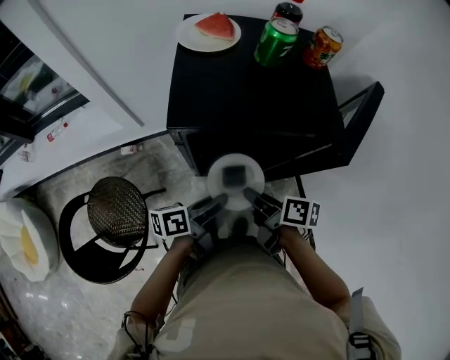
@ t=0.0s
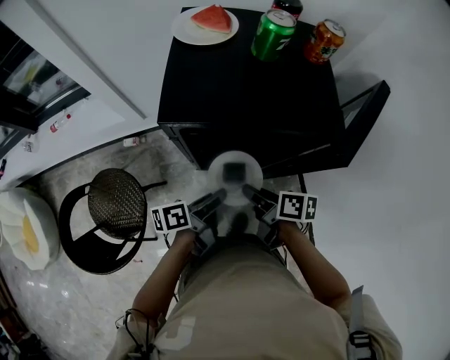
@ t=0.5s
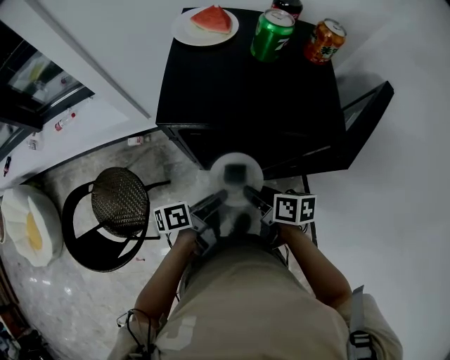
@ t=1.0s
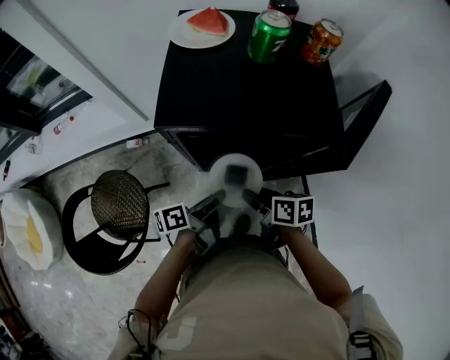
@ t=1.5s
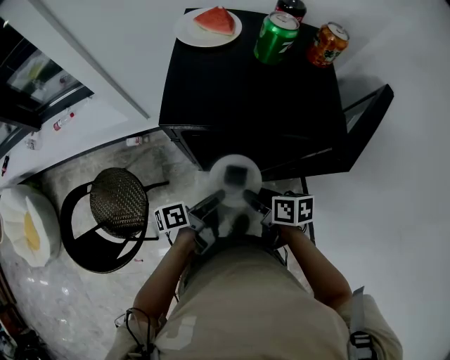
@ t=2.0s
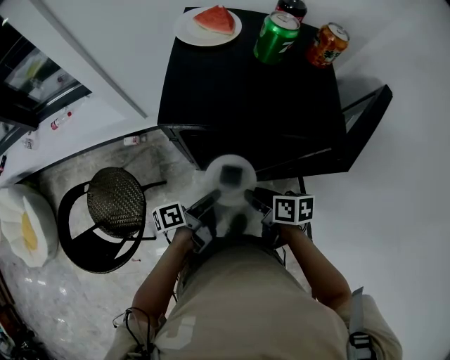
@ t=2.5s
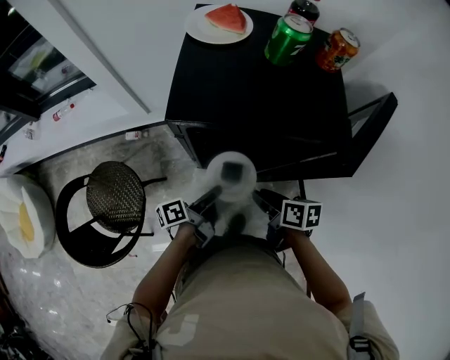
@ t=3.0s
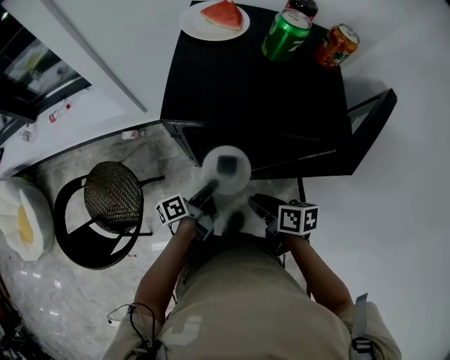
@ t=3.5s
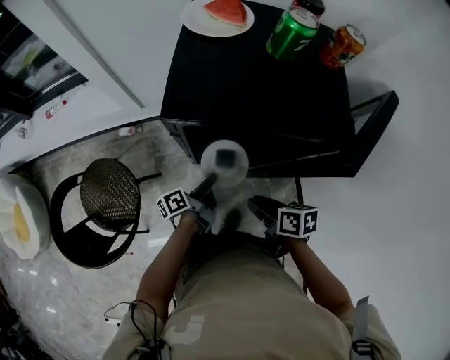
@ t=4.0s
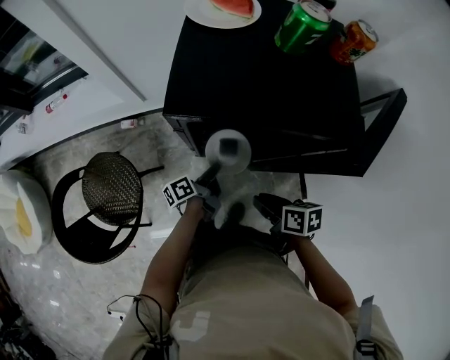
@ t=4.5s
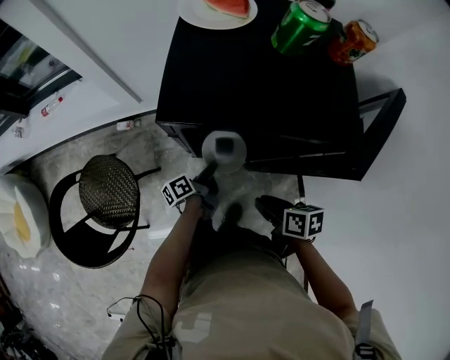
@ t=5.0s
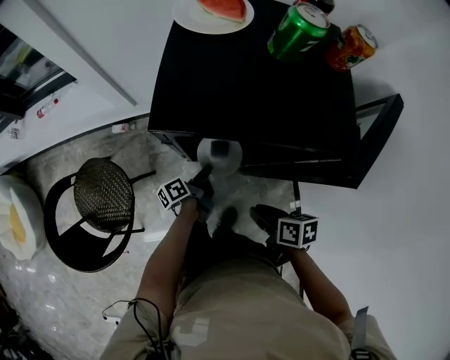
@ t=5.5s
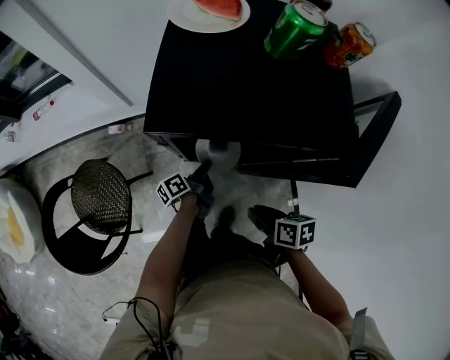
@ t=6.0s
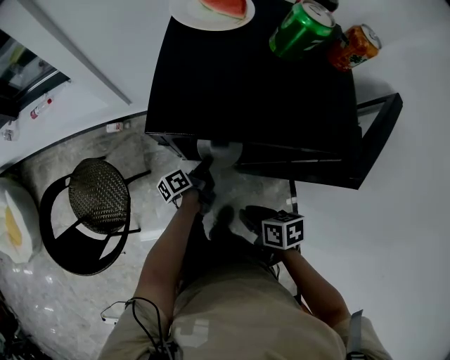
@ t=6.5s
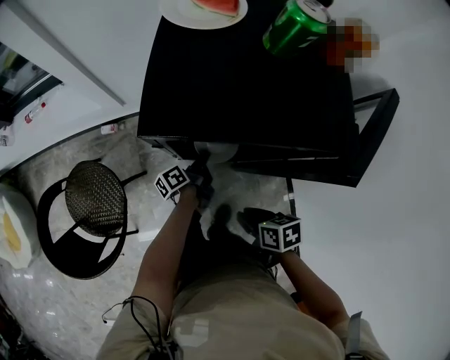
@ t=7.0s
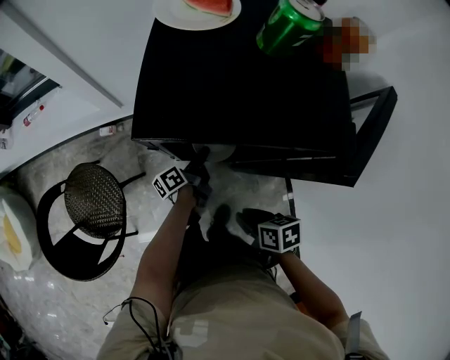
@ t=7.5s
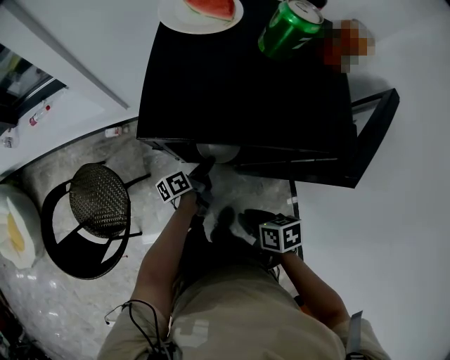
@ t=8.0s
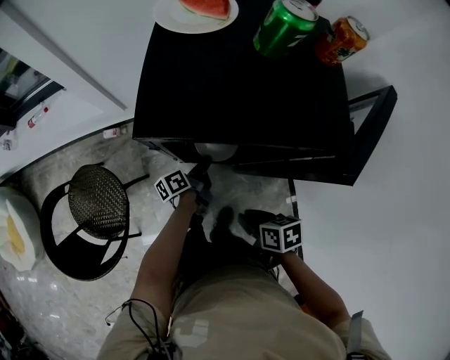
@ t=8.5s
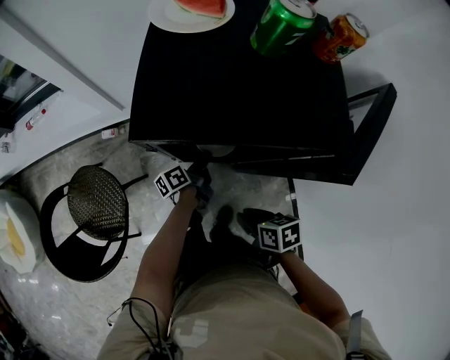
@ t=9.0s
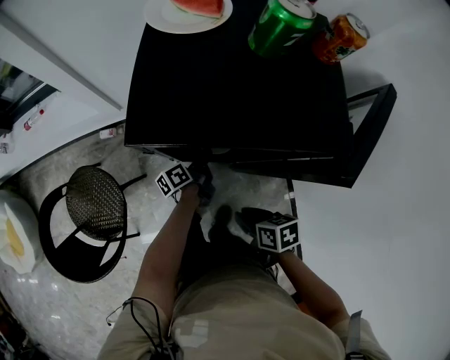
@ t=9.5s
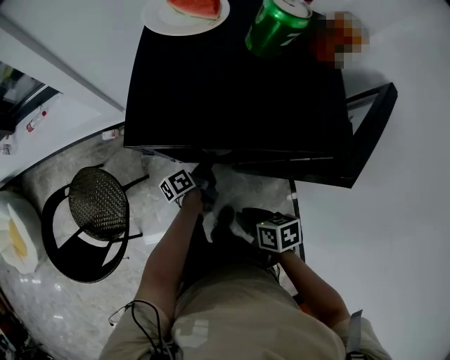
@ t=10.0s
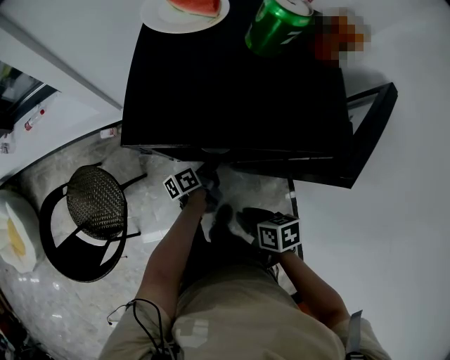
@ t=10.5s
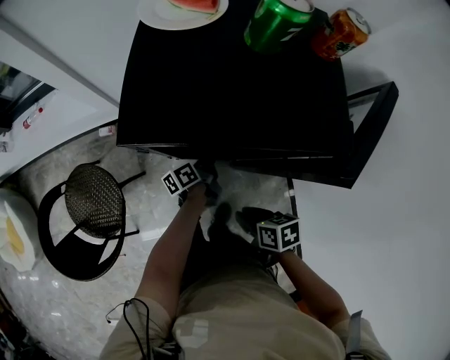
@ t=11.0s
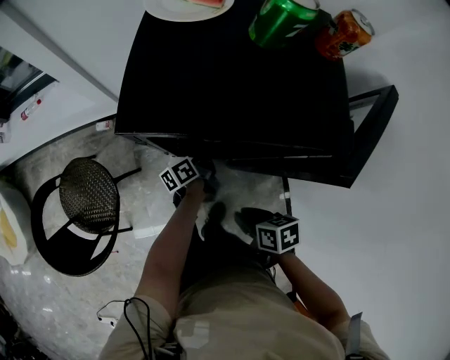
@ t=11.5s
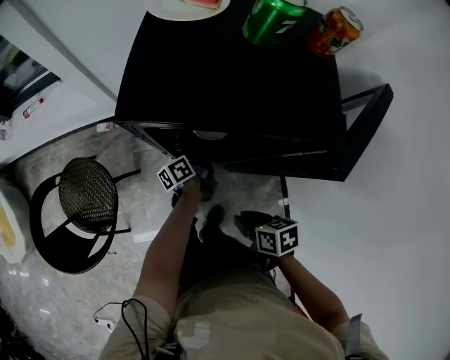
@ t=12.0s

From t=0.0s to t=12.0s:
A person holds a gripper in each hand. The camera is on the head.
From t=0.0s to t=2.0s: The right gripper heads downward, covering approximately 5 cm, and swivels about 20 degrees.
From t=2.0s to t=4.0s: The left gripper moves downward, about 10 cm.
From t=4.0s to t=6.0s: The left gripper heads downward and forward, covering about 10 cm.
From t=6.0s to t=8.0s: The left gripper opens.
From t=8.0s to t=12.0s: There are only small adjustments of the grippers.

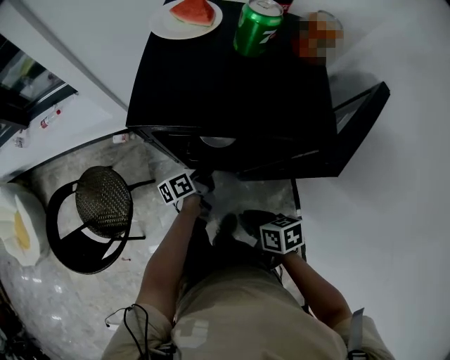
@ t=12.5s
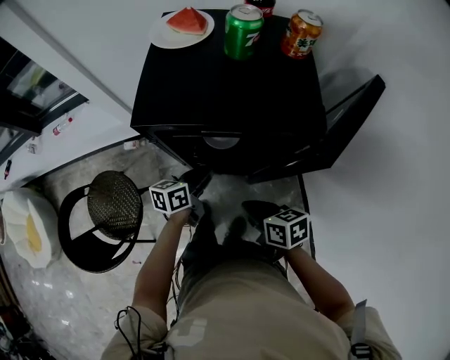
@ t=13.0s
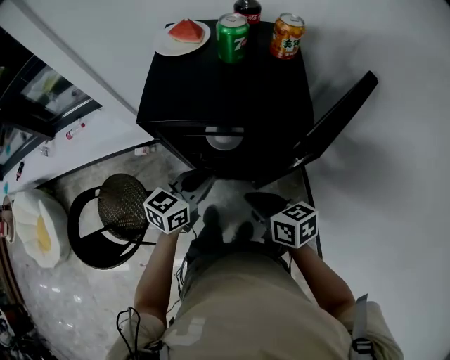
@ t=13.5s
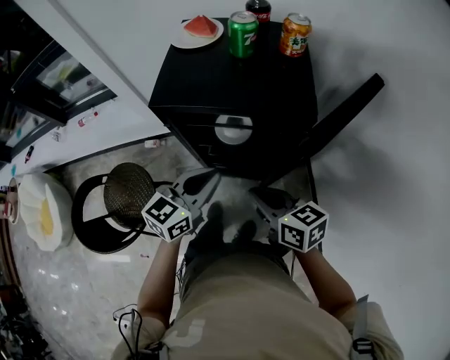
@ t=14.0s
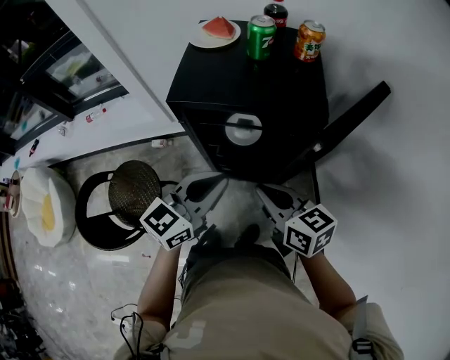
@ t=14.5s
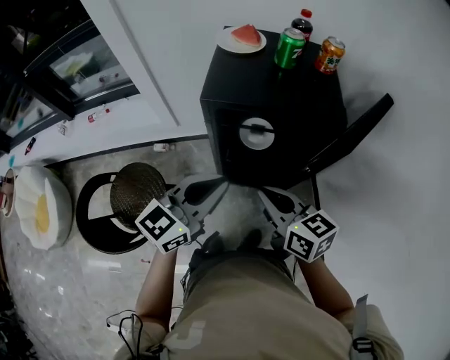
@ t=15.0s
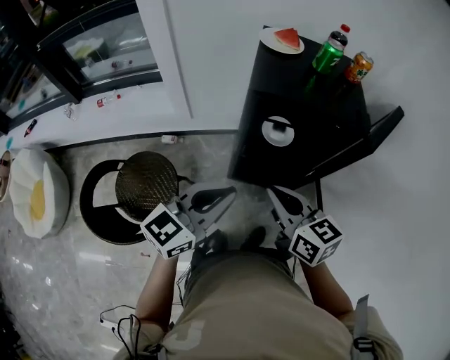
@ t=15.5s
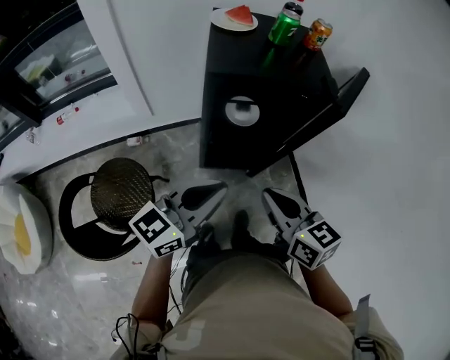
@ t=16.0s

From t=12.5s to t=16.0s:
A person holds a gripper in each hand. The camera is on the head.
From t=12.5s to t=14.5s: The right gripper shifts some 20 cm upward, and swivels some 40 degrees. The left gripper heads upward and backward, covering about 30 cm, and rotates around the line of its fingers by some 70 degrees, clockwise from behind.
From t=14.5s to t=16.0s: The left gripper heads to the left and backward, covering approximately 15 cm, while the right gripper moves backward and to the left, some 15 cm.

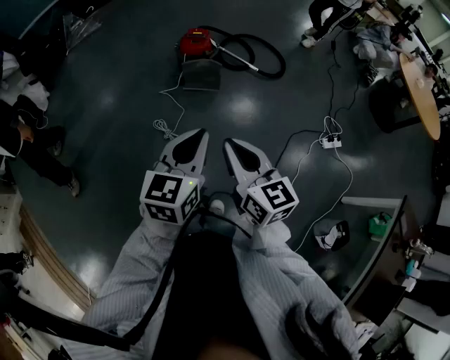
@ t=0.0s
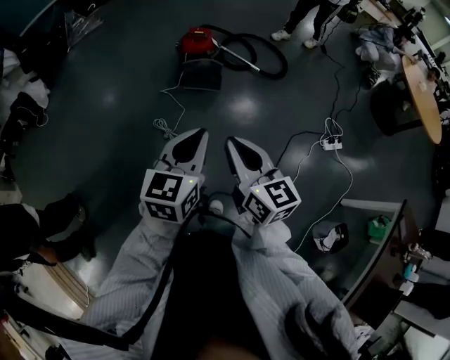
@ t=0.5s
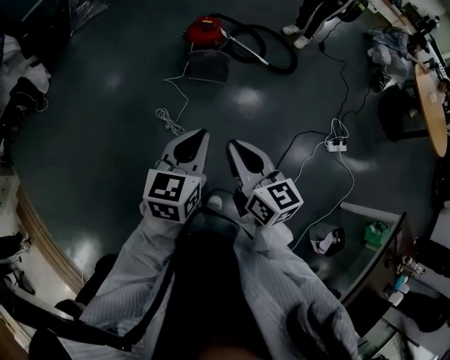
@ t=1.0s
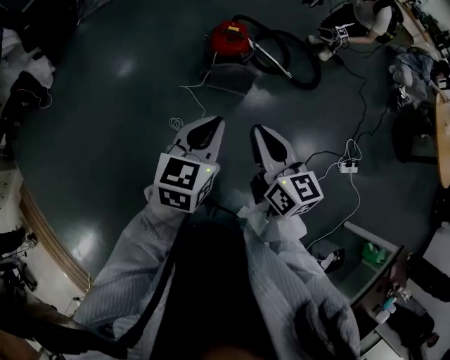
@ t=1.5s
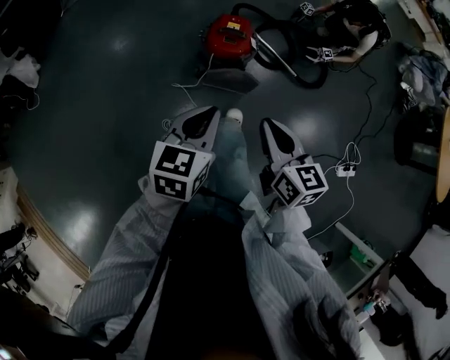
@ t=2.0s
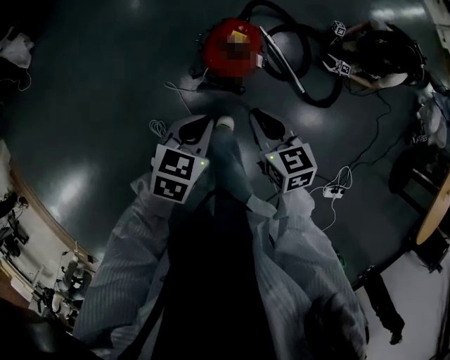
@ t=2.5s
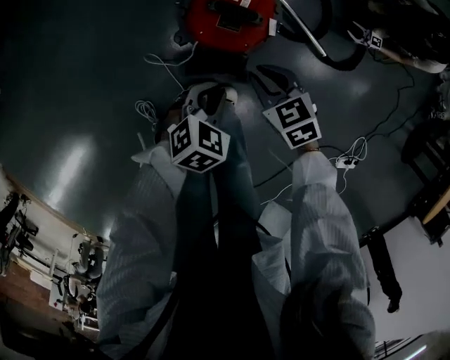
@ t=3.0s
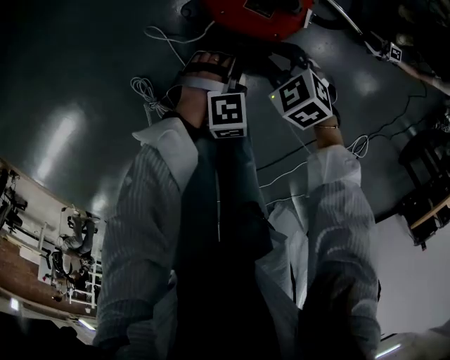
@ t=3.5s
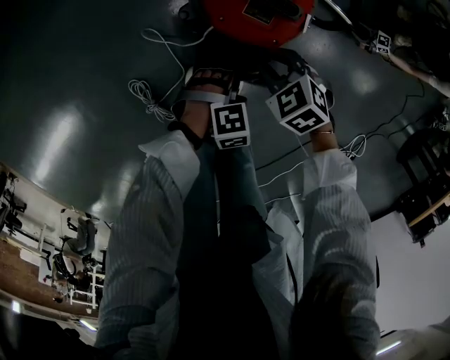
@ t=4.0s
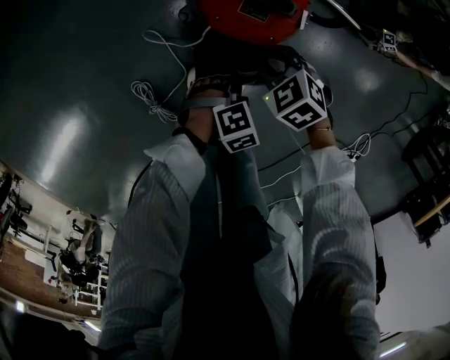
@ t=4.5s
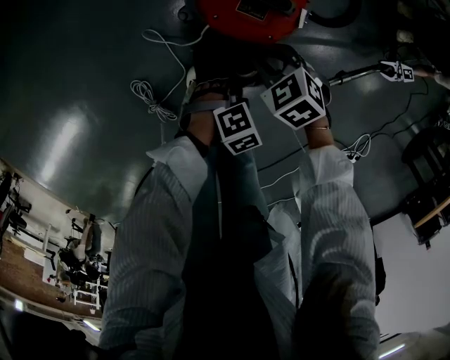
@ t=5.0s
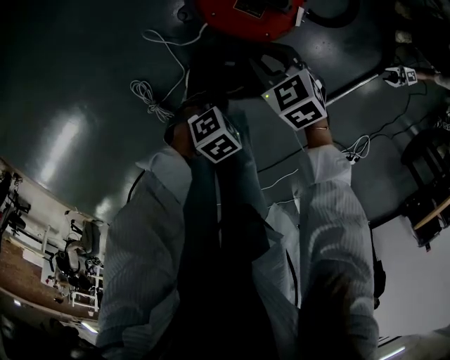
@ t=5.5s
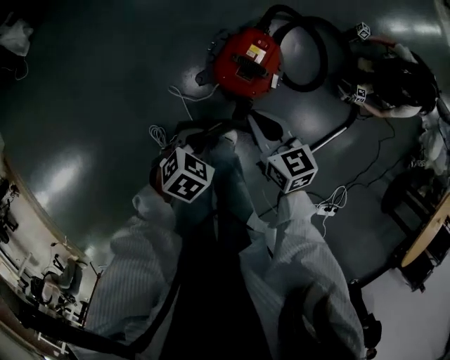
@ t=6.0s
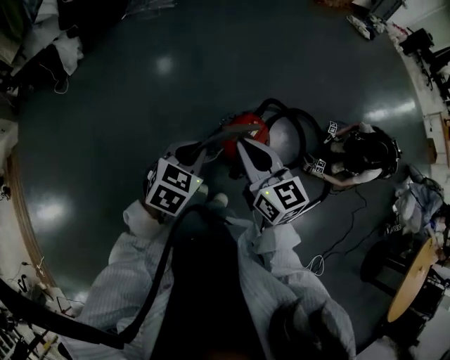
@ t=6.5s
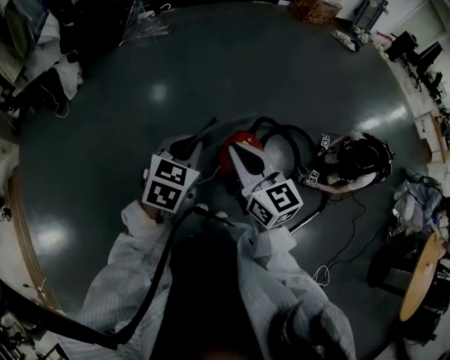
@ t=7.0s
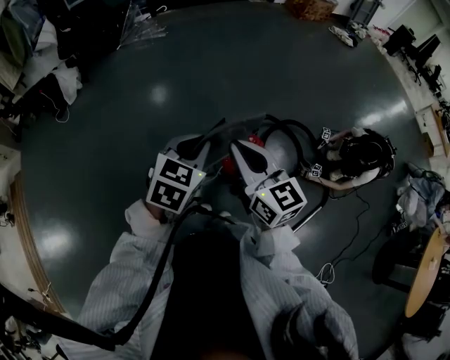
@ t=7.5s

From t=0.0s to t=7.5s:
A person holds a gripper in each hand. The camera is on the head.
From t=0.0s to t=2.0s: The pair of grippers is taken forward, roughly 50 cm.
From t=2.0s to t=4.0s: Both grippers move downward, about 50 cm. The right gripper points its fingers about 40 degrees further downward, while the left gripper tilts its fingers approximately 40 degrees downward, and opens, then closes again.
From t=4.0s to t=5.5s: The left gripper shifts by roughly 5 cm, and swivels roughly 30 degrees.
From t=5.5s to t=7.5s: The grippers both shift upward by some 70 cm. The right gripper angles its fingers upward, by approximately 50 degrees; the left gripper points its fingers approximately 40 degrees further upward.

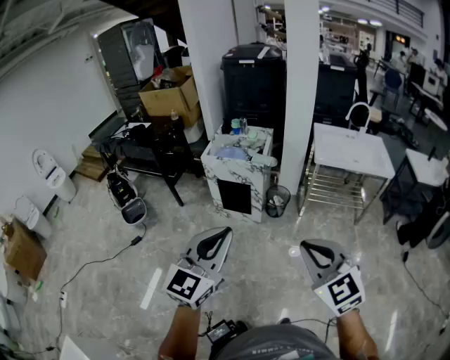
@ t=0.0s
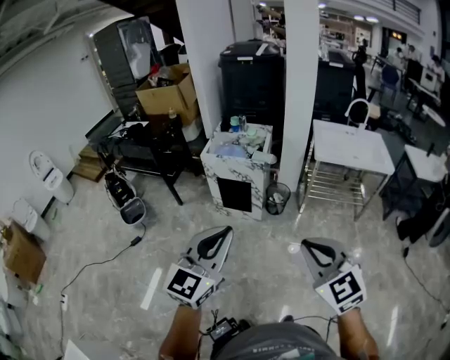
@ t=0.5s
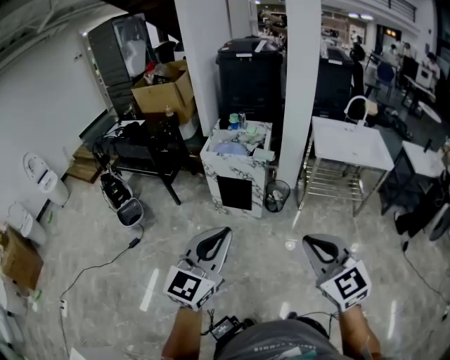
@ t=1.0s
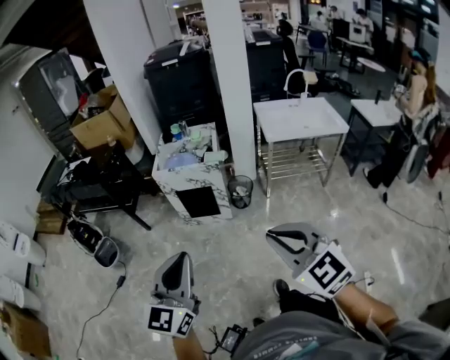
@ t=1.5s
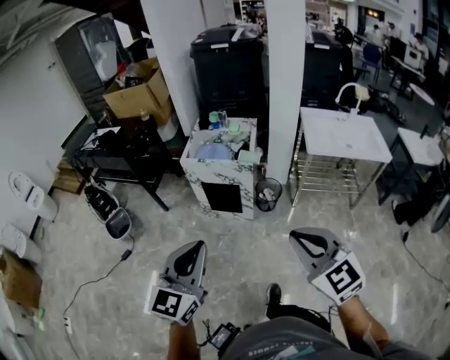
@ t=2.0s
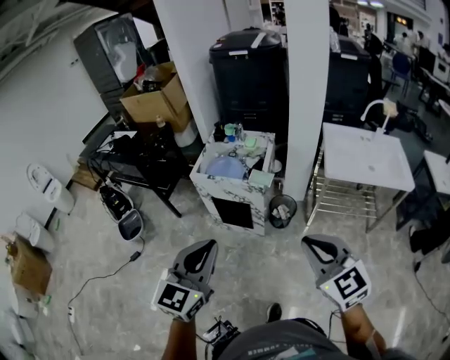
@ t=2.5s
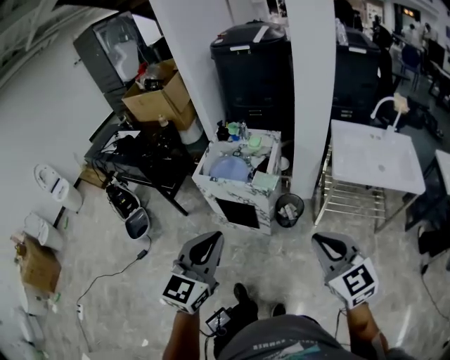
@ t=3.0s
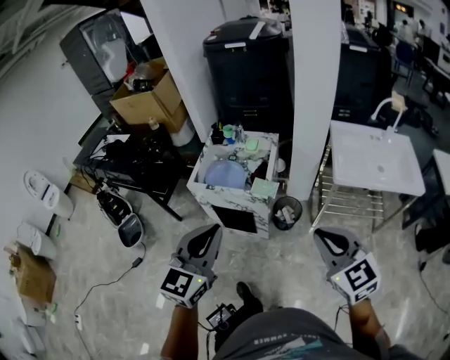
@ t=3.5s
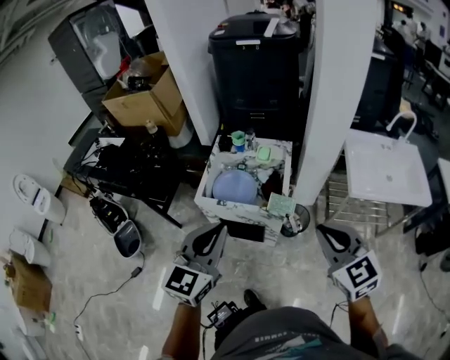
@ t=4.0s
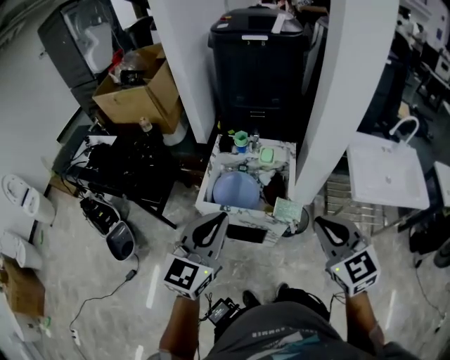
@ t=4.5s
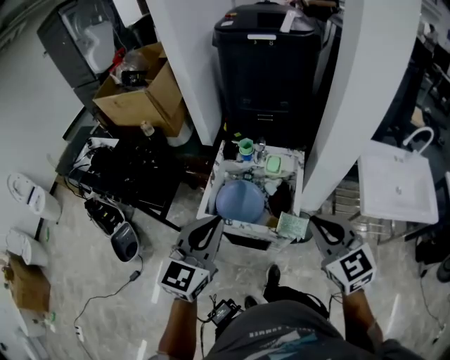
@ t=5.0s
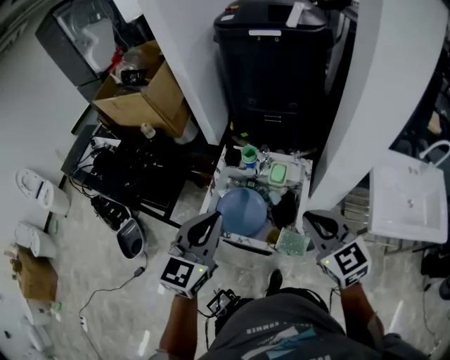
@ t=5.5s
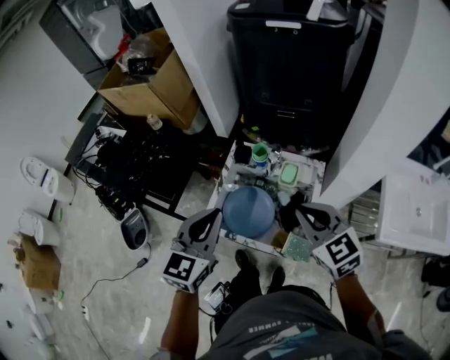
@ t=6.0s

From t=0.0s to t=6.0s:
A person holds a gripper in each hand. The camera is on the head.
From t=0.0s to t=2.0s: The right gripper is displaced forward by some 15 cm. The left gripper moves forward, to the left and downward, approximately 15 cm.
From t=2.0s to t=4.0s: The two grippers go some 40 cm forward.
From t=4.0s to t=6.0s: Both grippers move forward, approximately 30 cm.
